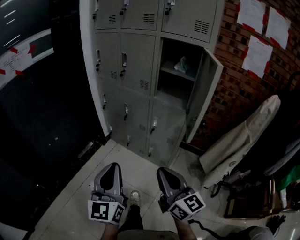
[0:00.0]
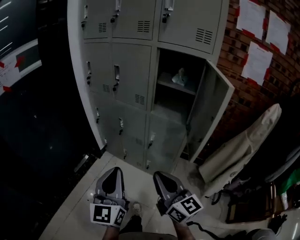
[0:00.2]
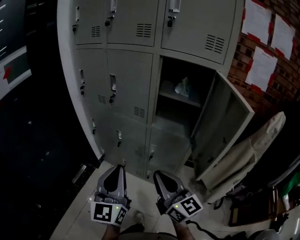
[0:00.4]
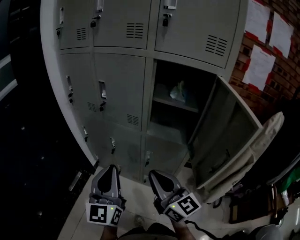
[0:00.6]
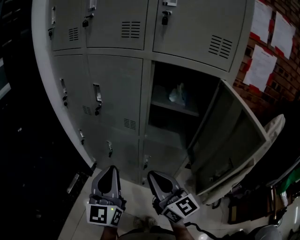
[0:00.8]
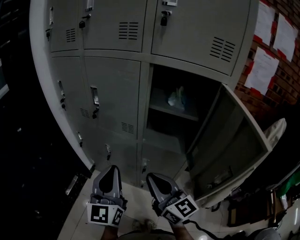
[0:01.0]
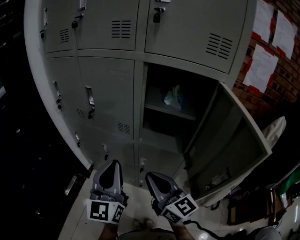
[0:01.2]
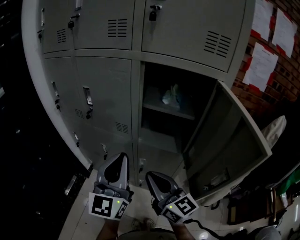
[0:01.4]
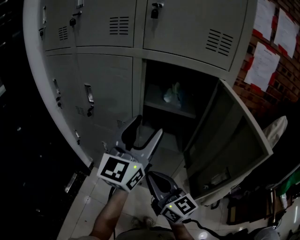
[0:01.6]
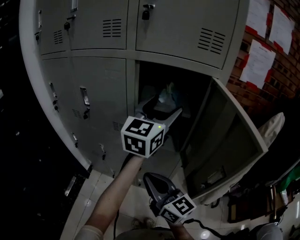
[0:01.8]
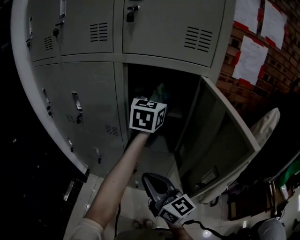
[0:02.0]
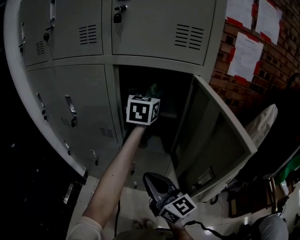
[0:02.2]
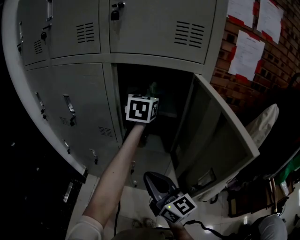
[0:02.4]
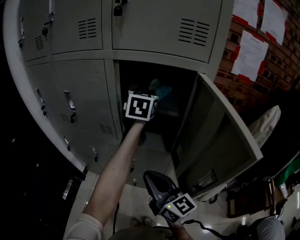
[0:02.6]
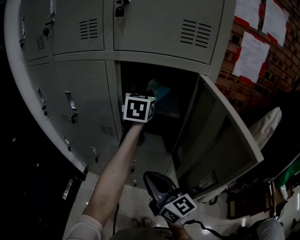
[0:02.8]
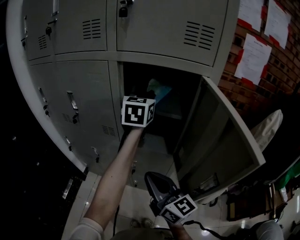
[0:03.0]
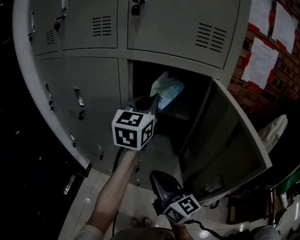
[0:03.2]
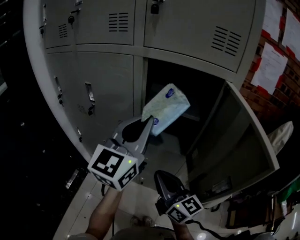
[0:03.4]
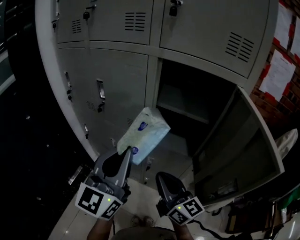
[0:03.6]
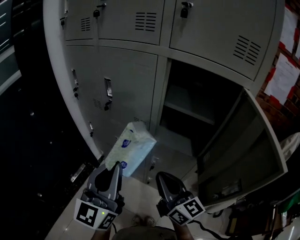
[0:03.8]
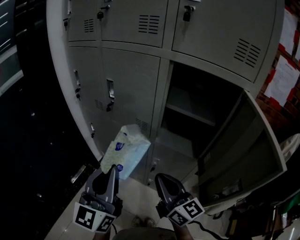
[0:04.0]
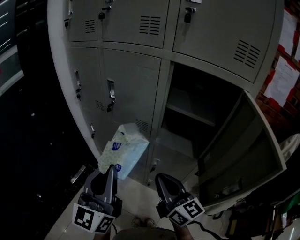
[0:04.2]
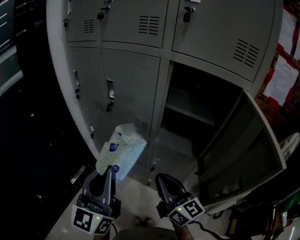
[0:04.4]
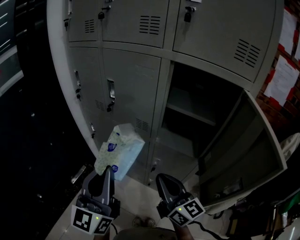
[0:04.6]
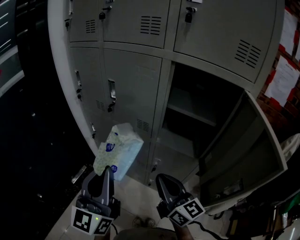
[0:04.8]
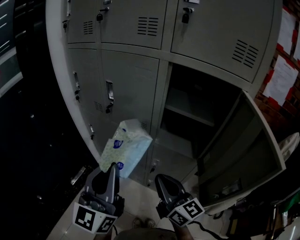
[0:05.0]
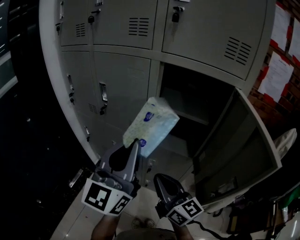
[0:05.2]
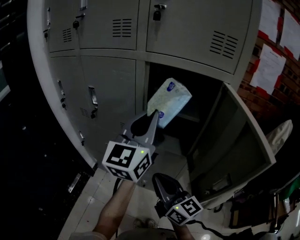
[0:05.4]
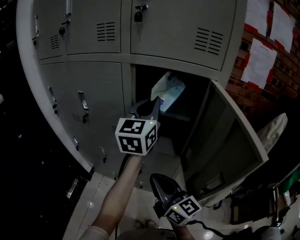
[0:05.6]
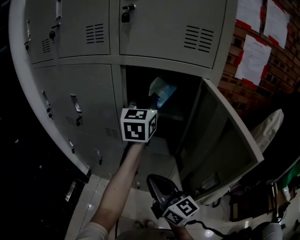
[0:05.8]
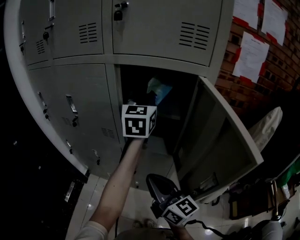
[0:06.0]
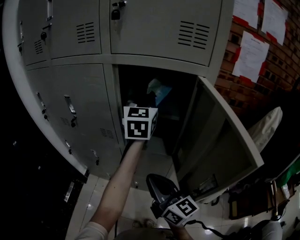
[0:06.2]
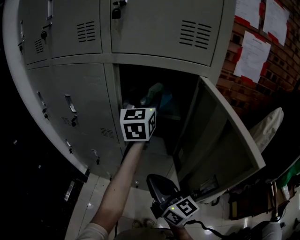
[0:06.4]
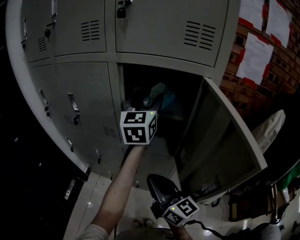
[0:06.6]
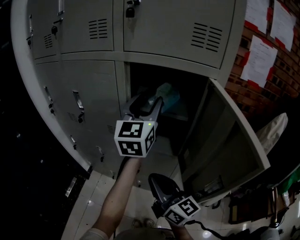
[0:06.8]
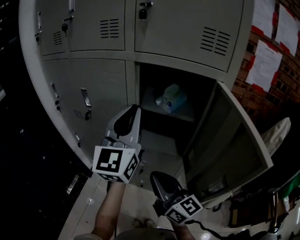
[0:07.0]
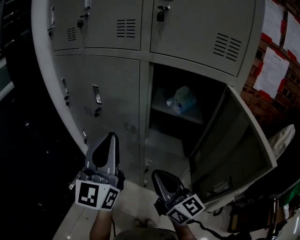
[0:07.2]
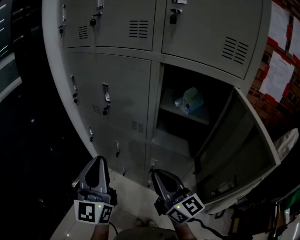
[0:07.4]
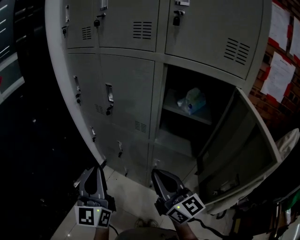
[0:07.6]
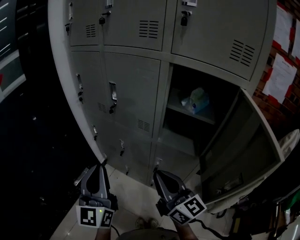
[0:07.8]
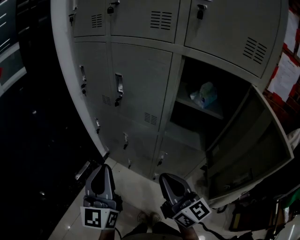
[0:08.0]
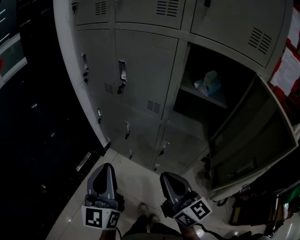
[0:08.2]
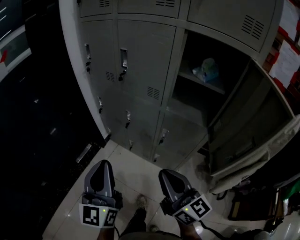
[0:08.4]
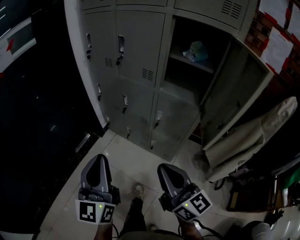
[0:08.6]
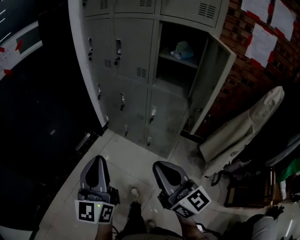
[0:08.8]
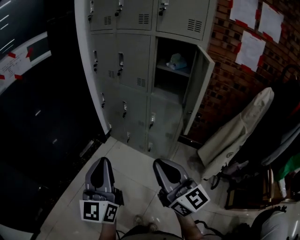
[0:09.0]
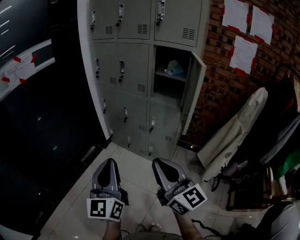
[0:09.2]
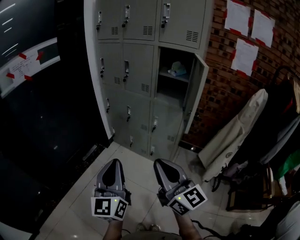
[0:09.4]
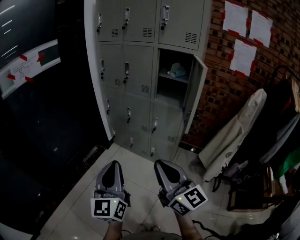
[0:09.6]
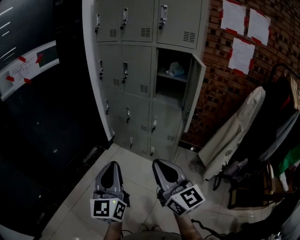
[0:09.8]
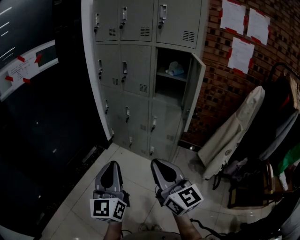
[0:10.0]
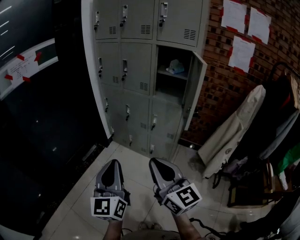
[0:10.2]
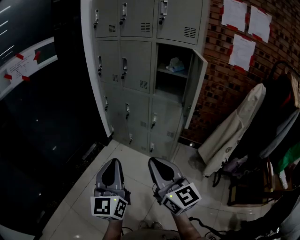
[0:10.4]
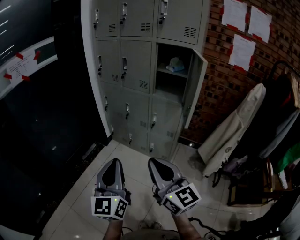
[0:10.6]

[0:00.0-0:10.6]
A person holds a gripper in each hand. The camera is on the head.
0:00.0 to 0:01.6: The right gripper travels forward by approximately 30 cm, while the left gripper heads forward and to the right, covering approximately 40 cm, changes its angle by roughly 30 degrees, and opens its fingers.
0:01.6 to 0:03.0: The right gripper shifts by approximately 5 cm. Meanwhile the left gripper moves forward and to the right, some 20 cm, changes its angle by roughly 30 degrees, and closes.
0:03.0 to 0:04.6: The left gripper is displaced backward and to the left by approximately 40 cm, and rotates some 30 degrees, while the right gripper goes some 5 cm to the left.
0:04.6 to 0:06.0: The left gripper goes roughly 40 cm to the right and forward, and turns by about 20 degrees; the right gripper heads to the right, covering roughly 5 cm.
0:06.0 to 0:07.6: The left gripper heads to the left and backward, covering approximately 40 cm, swivels some 30 degrees, and opens and closes again; the right gripper travels to the left by roughly 5 cm.
0:07.6 to 0:09.0: The grippers both shift backward by approximately 35 cm.
0:09.0 to 0:10.6: The right gripper heads to the left and backward, covering approximately 10 cm. Meanwhile the left gripper travels backward by approximately 5 cm.

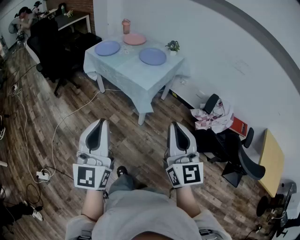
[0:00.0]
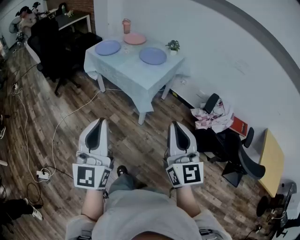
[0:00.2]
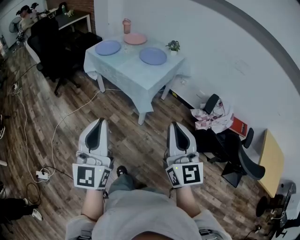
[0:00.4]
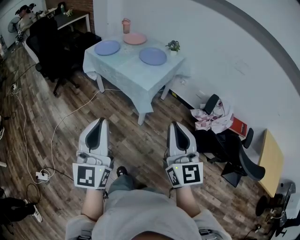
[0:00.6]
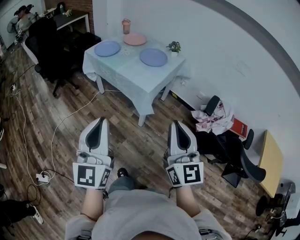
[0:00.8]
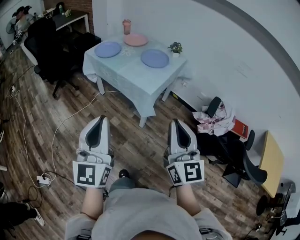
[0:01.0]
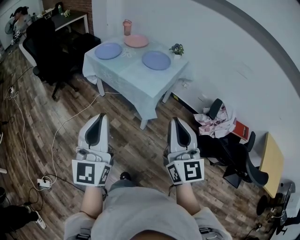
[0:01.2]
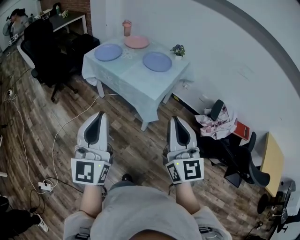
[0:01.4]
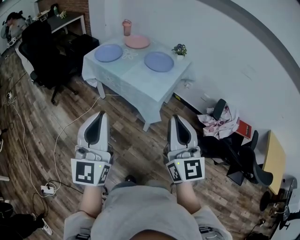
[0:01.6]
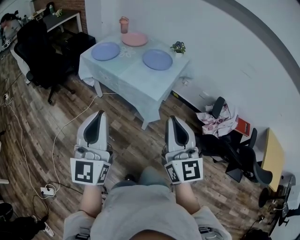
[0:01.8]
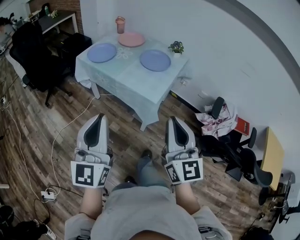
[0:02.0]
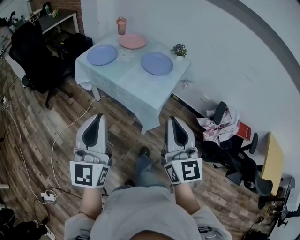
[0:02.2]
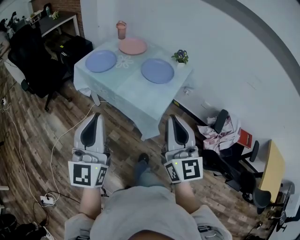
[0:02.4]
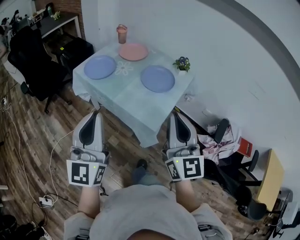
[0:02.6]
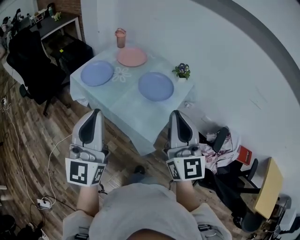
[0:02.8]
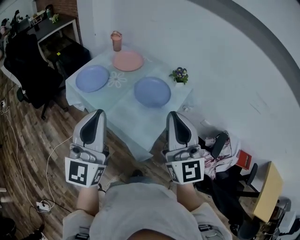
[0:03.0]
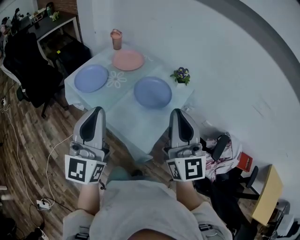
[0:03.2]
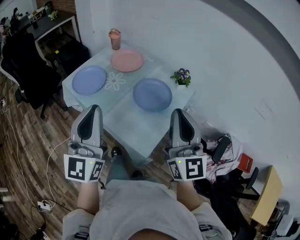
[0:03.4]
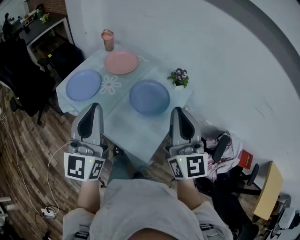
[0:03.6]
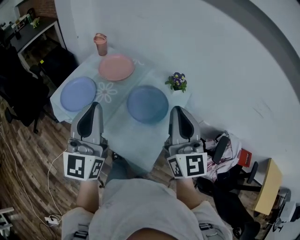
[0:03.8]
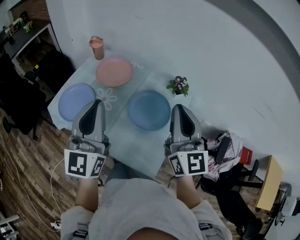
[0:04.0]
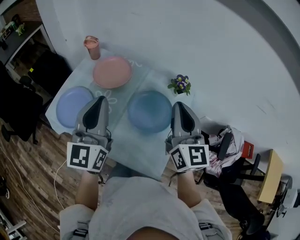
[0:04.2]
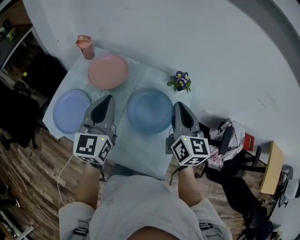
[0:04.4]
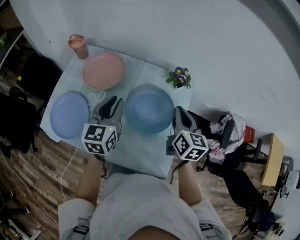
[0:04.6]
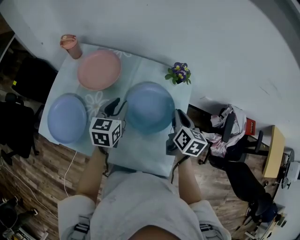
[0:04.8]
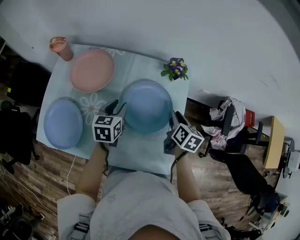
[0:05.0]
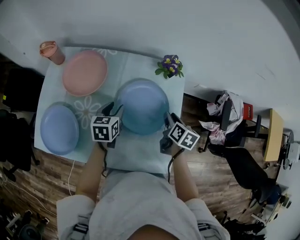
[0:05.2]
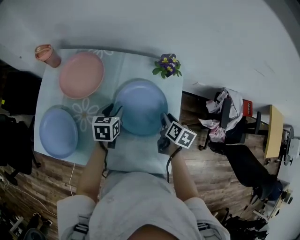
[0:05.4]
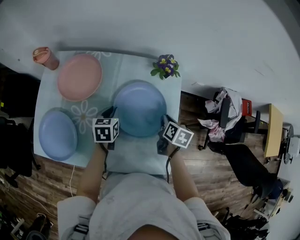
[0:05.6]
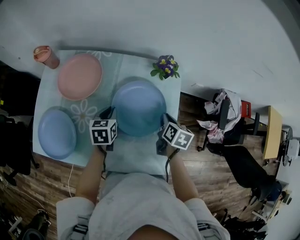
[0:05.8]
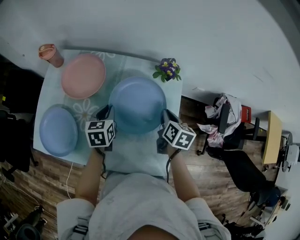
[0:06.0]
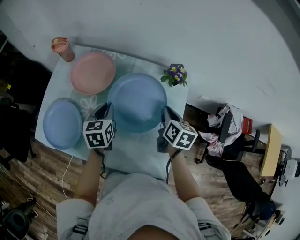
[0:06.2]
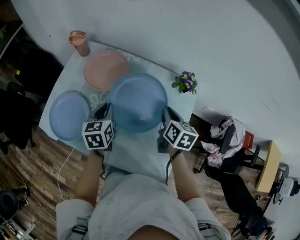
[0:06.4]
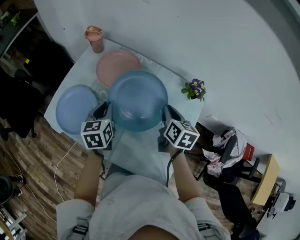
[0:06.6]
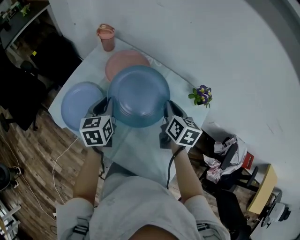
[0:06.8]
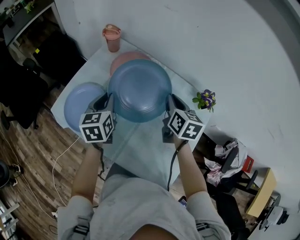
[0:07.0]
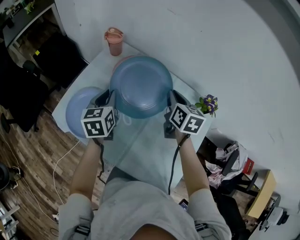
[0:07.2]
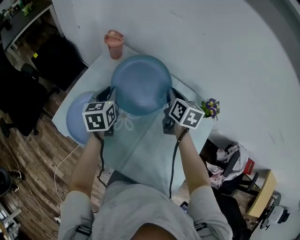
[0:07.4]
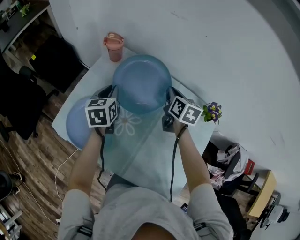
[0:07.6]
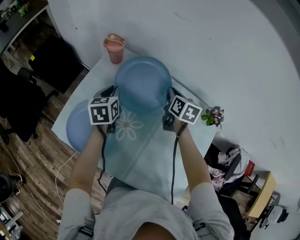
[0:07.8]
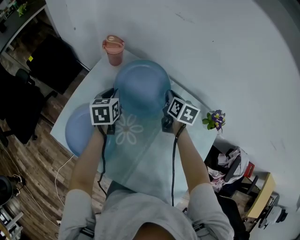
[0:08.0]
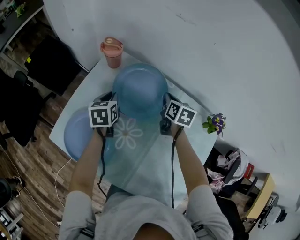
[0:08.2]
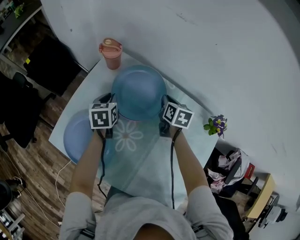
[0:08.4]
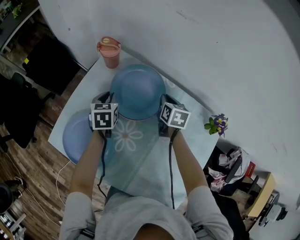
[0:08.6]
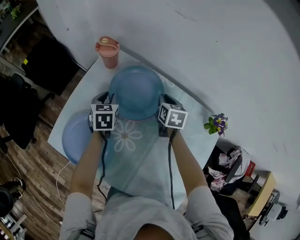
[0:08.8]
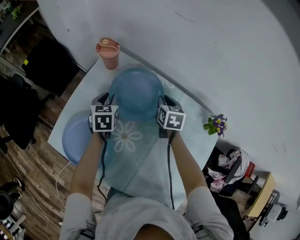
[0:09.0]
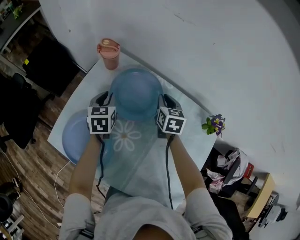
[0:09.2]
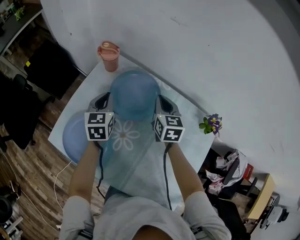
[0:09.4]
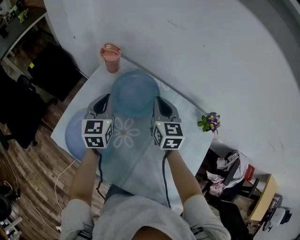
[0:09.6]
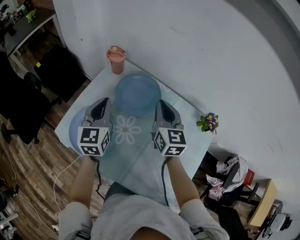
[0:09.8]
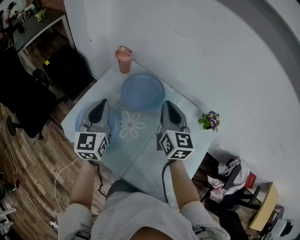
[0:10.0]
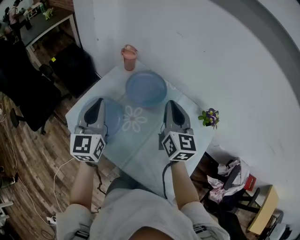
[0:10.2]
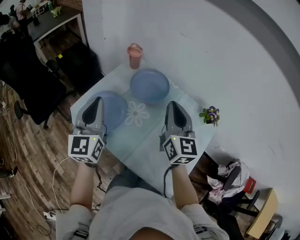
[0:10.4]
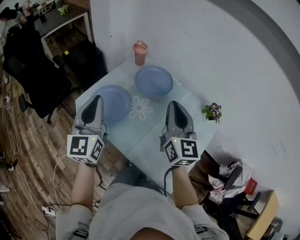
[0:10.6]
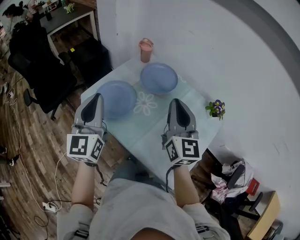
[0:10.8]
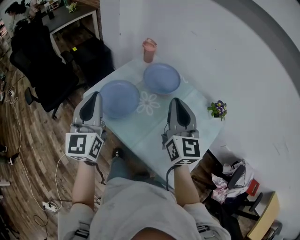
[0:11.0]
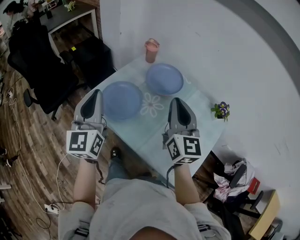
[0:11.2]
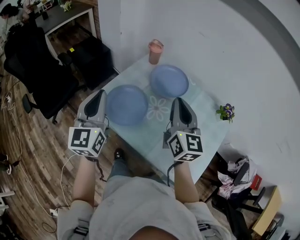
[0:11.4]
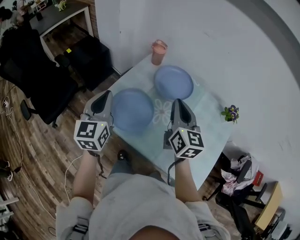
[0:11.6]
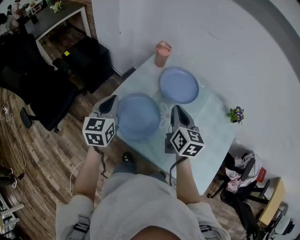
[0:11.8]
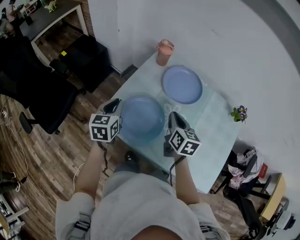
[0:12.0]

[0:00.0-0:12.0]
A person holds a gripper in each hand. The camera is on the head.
0:00.0 to 0:01.6: The grippers both shift forward and to the left by some 15 cm.
0:01.6 to 0:03.0: Both grippers travel together forward, some 30 cm.
0:03.0 to 0:04.4: The left gripper shifts about 35 cm forward, and turns by roughly 30 degrees; the right gripper goes about 35 cm forward and downward, and rotates about 40 degrees.
0:04.4 to 0:06.0: Both grippers travel together downward, approximately 20 cm. The right gripper tips its fingers downward by roughly 30 degrees, and opens, then closes once more. Meanwhile the left gripper tips its fingers downward by roughly 40 degrees, and opens, then closes again.
0:06.0 to 0:07.6: The left gripper moves about 25 cm, and changes its angle by roughly 20 degrees; the right gripper shifts by roughly 30 cm, and rotates about 30 degrees.
0:07.6 to 0:09.0: The right gripper goes about 10 cm downward, while the left gripper goes some 10 cm downward and forward.
0:09.0 to 0:10.4: Both grippers travel together upward and backward, about 40 cm. The right gripper tips its fingers upward by approximately 40 degrees; the left gripper tilts its fingers approximately 40 degrees upward, and closes its fingers.
0:10.4 to 0:12.0: The left gripper travels downward, to the left and forward by about 25 cm, and tilts its fingers some 30 degrees downward, while the right gripper heads downward and to the left, covering approximately 25 cm, and rotates about 30 degrees.

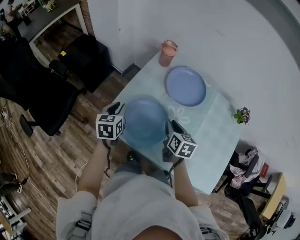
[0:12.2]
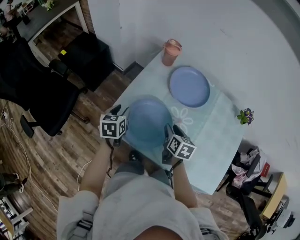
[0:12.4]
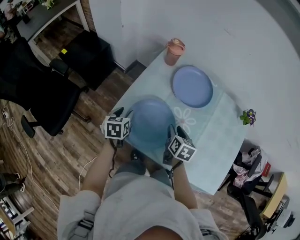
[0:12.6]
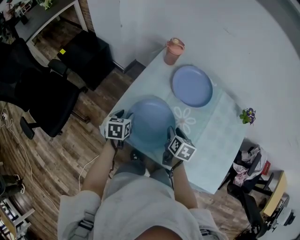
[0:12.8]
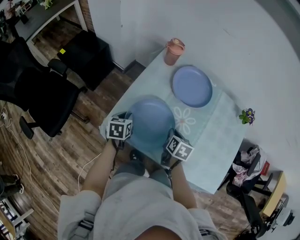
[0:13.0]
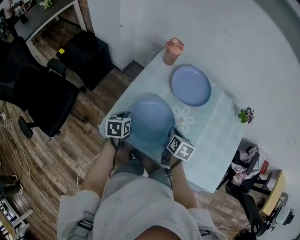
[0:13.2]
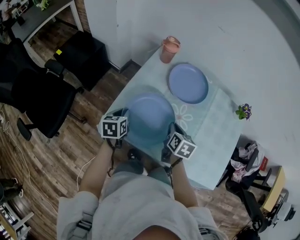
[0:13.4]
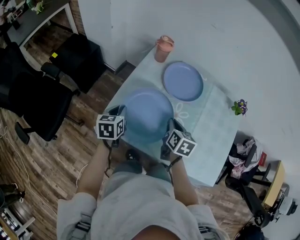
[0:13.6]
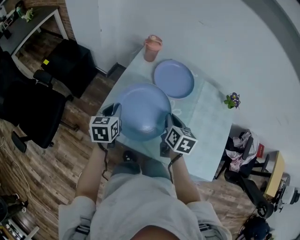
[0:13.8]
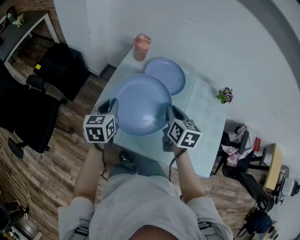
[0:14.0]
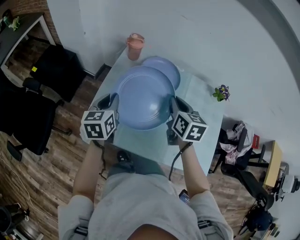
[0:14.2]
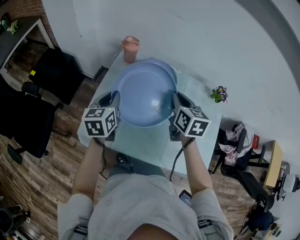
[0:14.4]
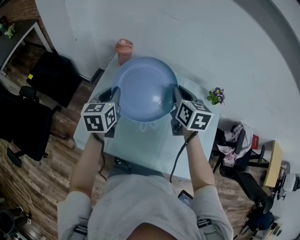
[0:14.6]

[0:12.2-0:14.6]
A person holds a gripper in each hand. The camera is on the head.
0:12.2 to 0:13.4: The left gripper heads downward, covering approximately 5 cm, and opens and closes again.
0:13.4 to 0:14.6: Both grippers move upward, forward and to the right, some 25 cm. The left gripper turns by about 20 degrees; the right gripper changes its angle by some 20 degrees.
